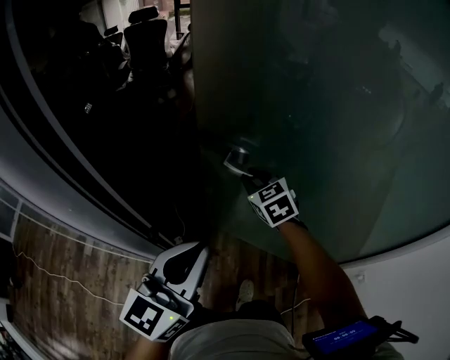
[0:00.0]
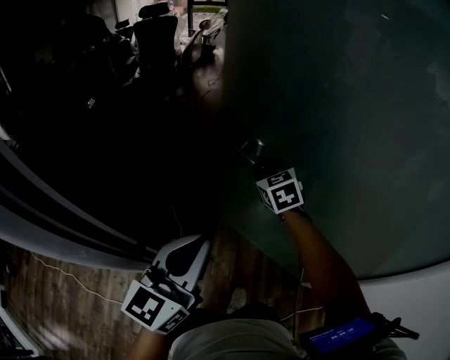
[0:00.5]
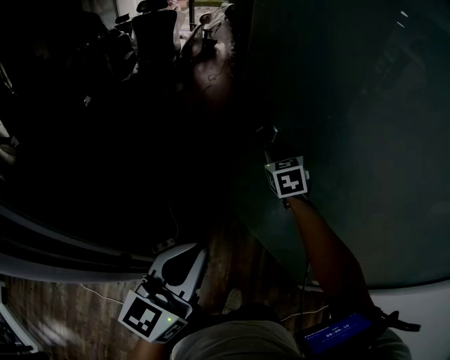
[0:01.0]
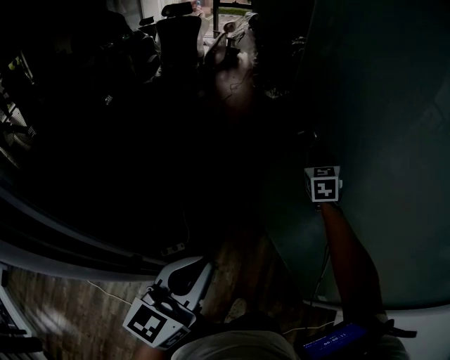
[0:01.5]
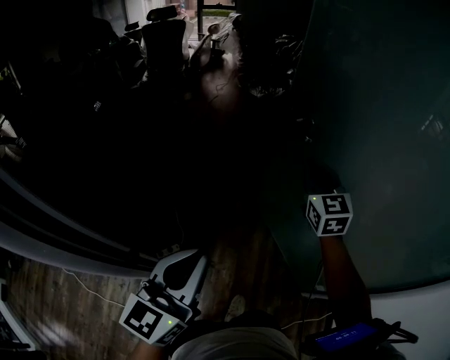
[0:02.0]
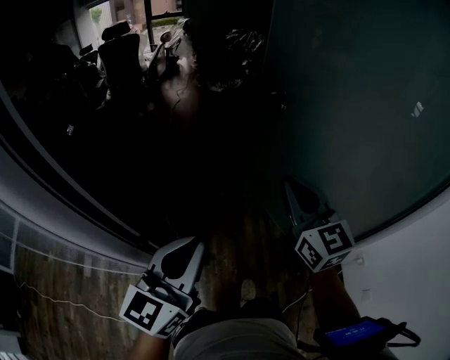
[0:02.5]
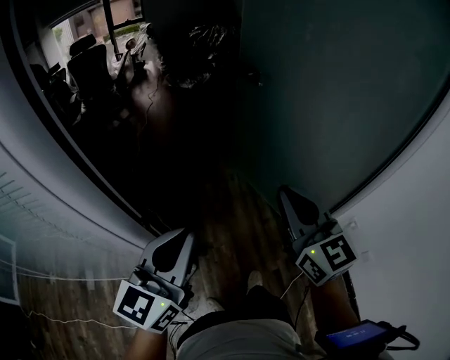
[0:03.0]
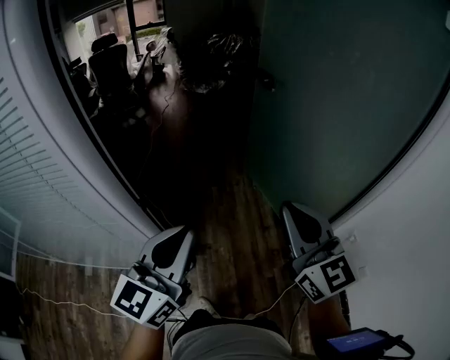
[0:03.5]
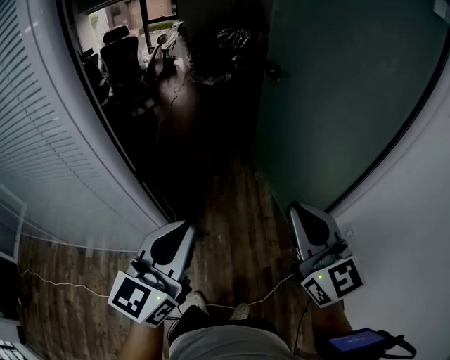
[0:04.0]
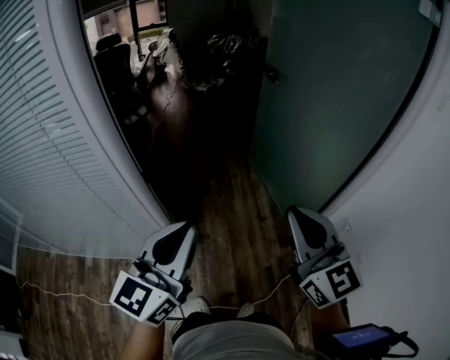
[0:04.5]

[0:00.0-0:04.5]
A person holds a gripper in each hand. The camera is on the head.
0:00.0 to 0:02.0: The left gripper heads forward, covering about 5 cm. The right gripper is displaced to the right, forward and upward by about 20 cm, and rotates approximately 30 degrees.
0:02.0 to 0:04.5: The left gripper moves backward, roughly 25 cm. Meanwhile the right gripper is displaced backward by approximately 50 cm.

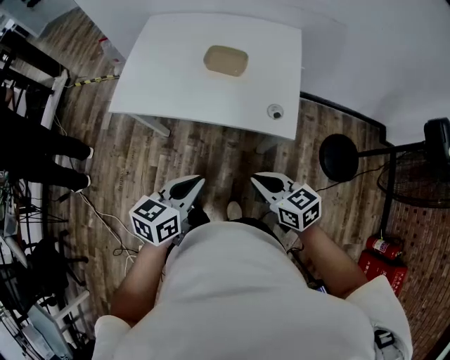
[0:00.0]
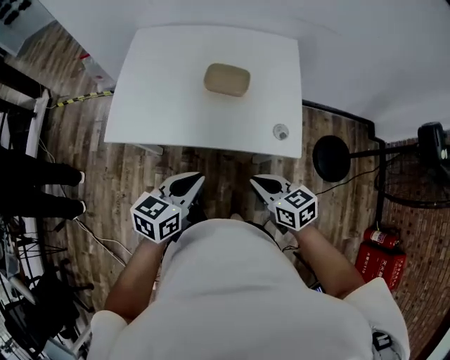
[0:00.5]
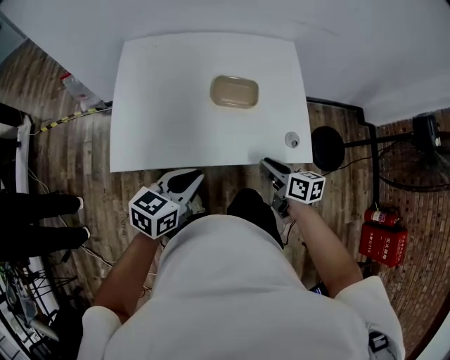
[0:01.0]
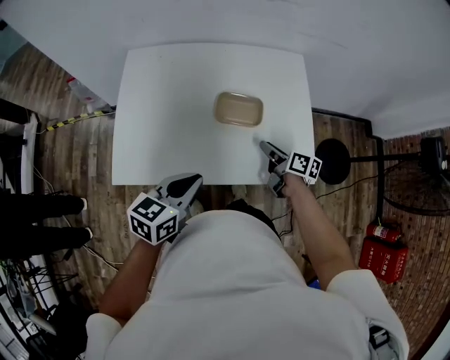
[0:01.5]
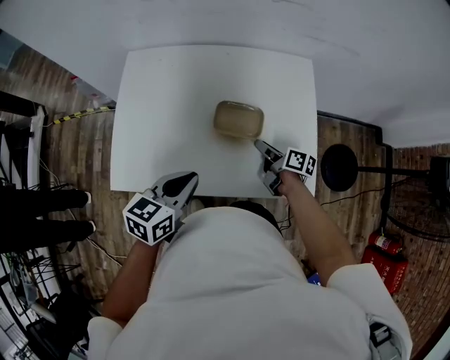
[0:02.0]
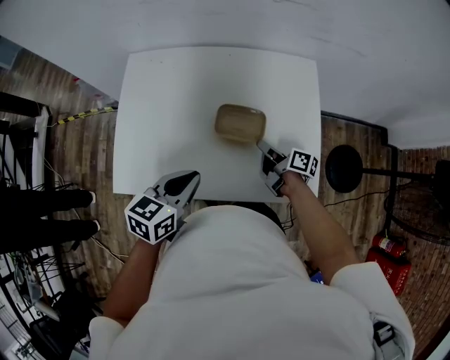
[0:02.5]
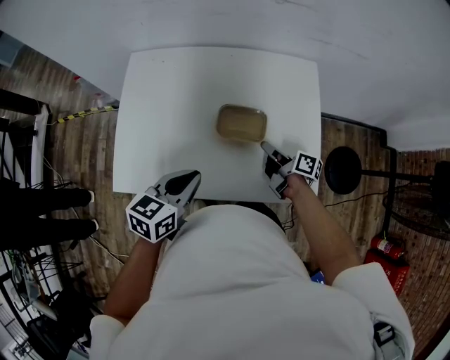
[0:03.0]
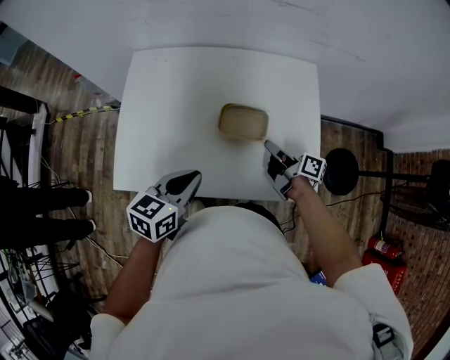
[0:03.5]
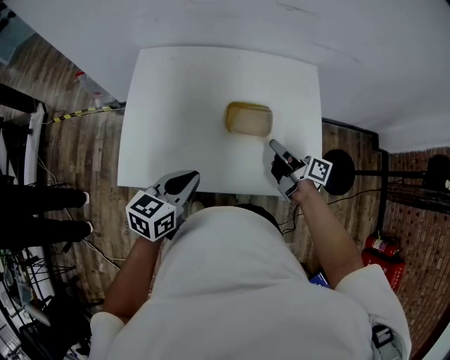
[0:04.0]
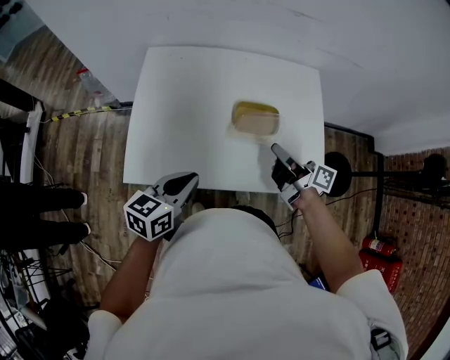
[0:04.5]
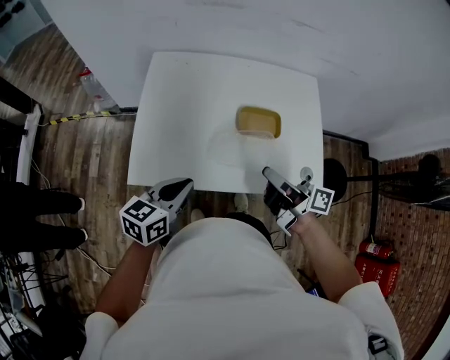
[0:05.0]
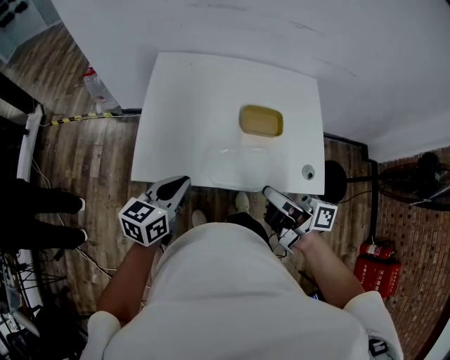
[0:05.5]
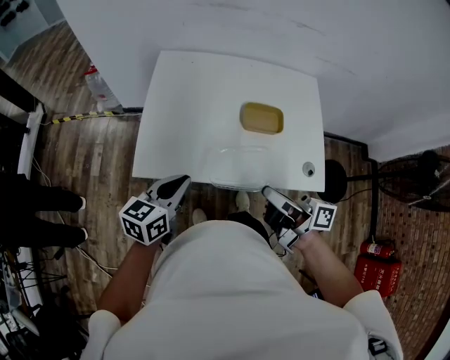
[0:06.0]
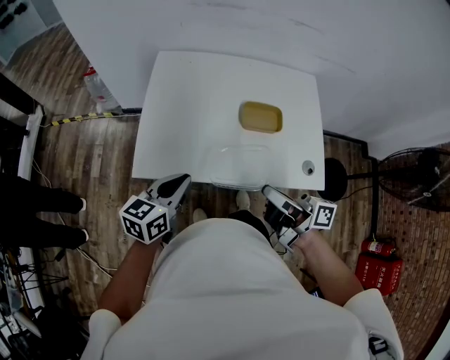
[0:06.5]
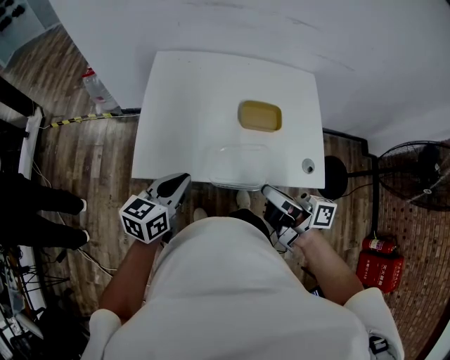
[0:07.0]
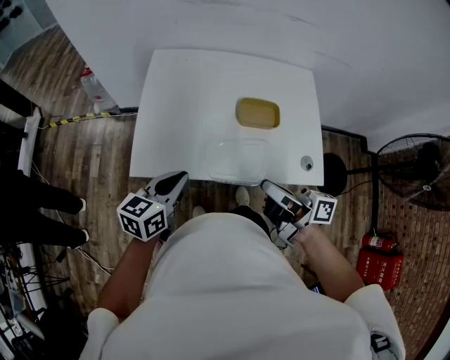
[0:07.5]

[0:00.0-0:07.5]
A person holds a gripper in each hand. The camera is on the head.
0:00.0 to 0:02.0: The left gripper is displaced forward and to the left by roughly 30 cm; the right gripper heads forward, covering about 40 cm, twists roughly 50 degrees clockwise, seen from behind, and opens up.
0:02.0 to 0:04.0: The right gripper moves upward, roughly 10 cm, and closes up.
0:04.0 to 0:05.5: The left gripper shifts some 10 cm to the left and backward; the right gripper goes roughly 25 cm backward, to the left and upward.
0:05.5 to 0:07.5: The two grippers keep their place.

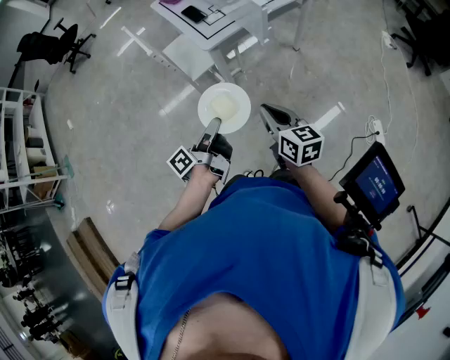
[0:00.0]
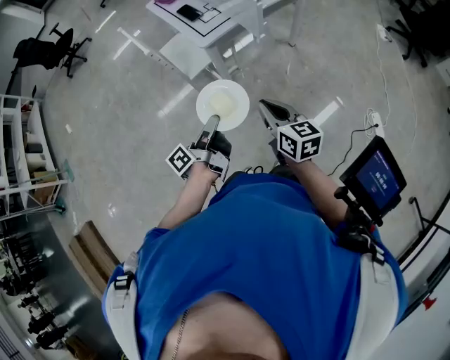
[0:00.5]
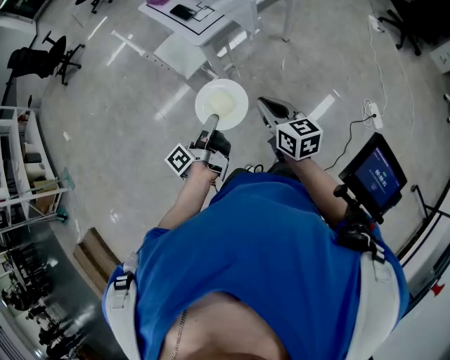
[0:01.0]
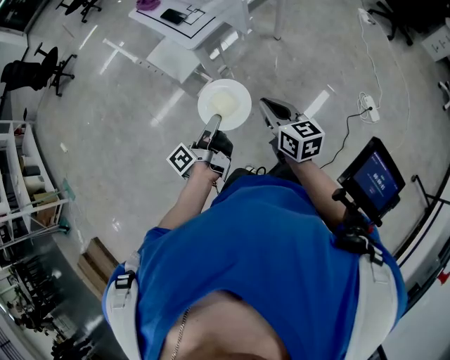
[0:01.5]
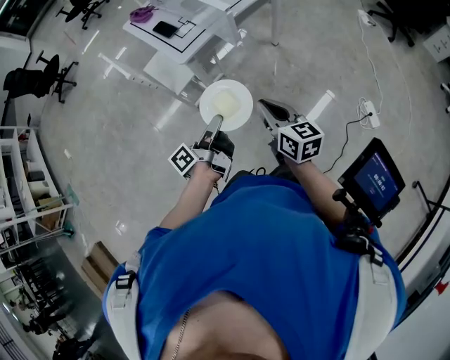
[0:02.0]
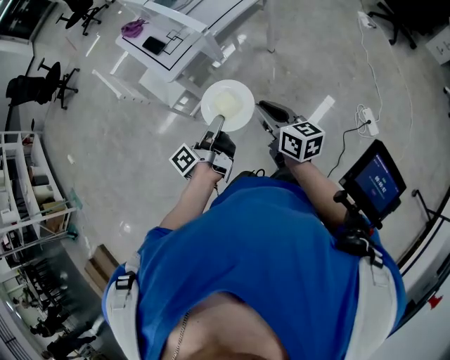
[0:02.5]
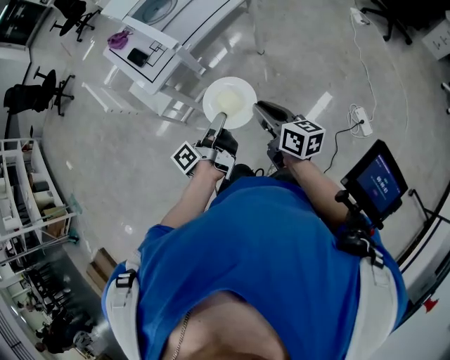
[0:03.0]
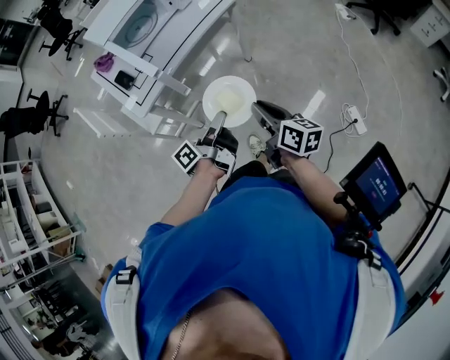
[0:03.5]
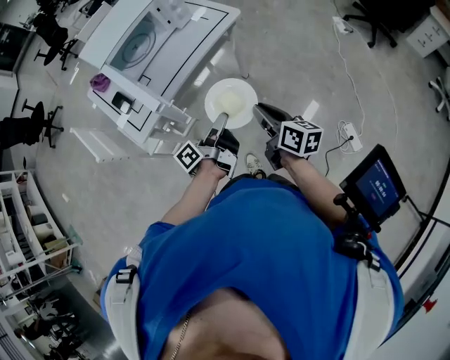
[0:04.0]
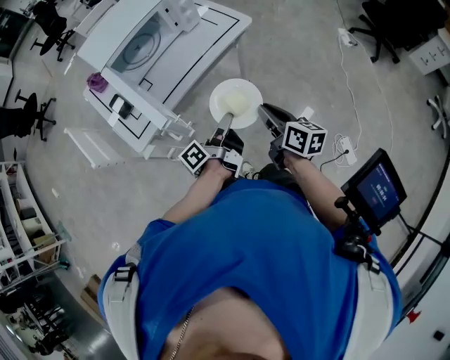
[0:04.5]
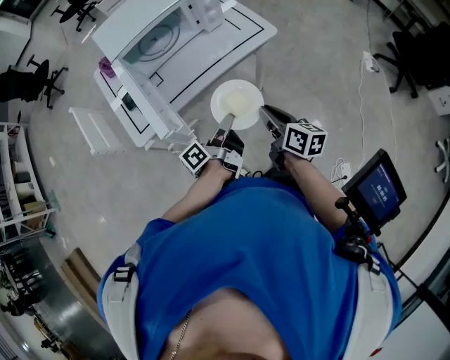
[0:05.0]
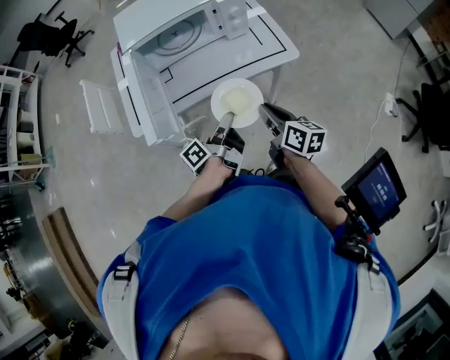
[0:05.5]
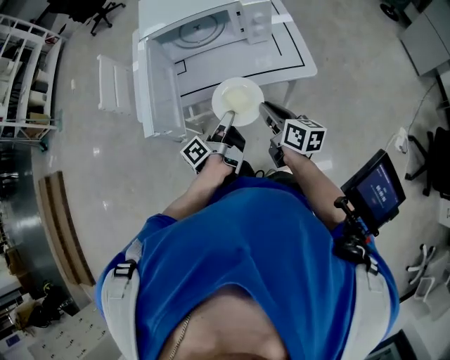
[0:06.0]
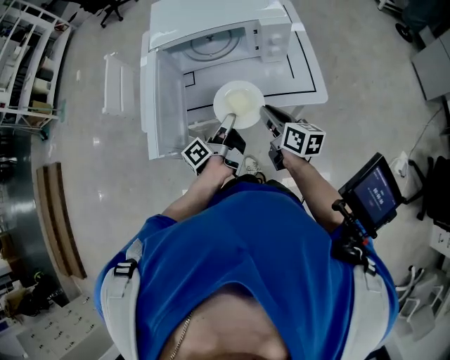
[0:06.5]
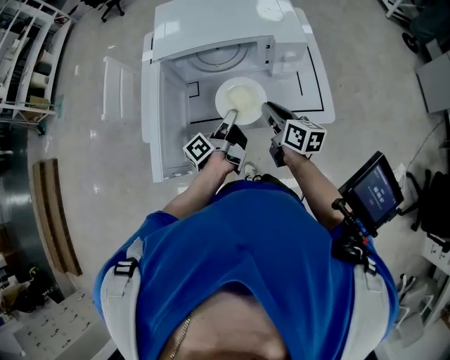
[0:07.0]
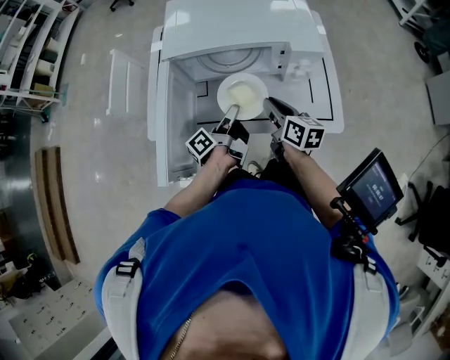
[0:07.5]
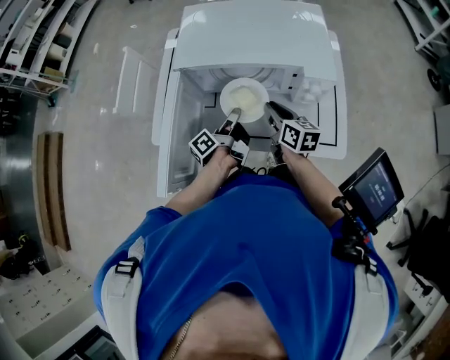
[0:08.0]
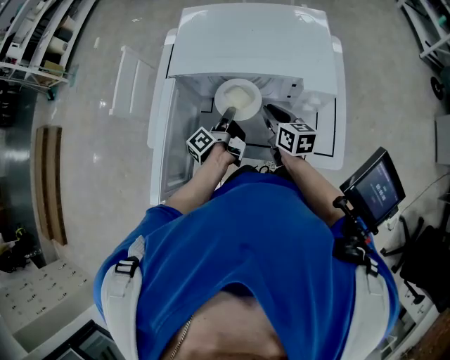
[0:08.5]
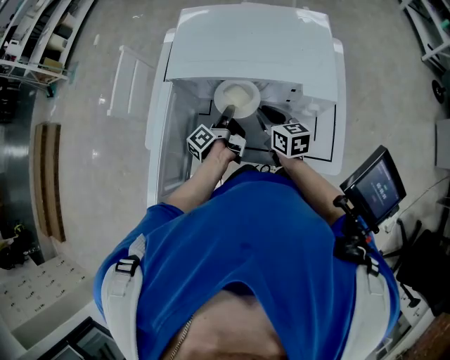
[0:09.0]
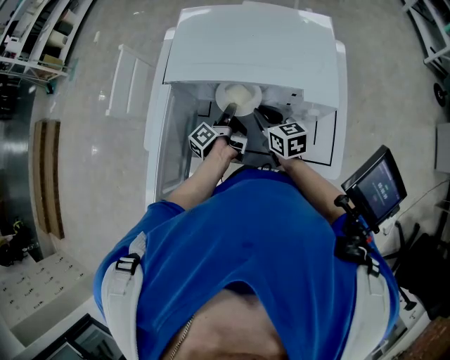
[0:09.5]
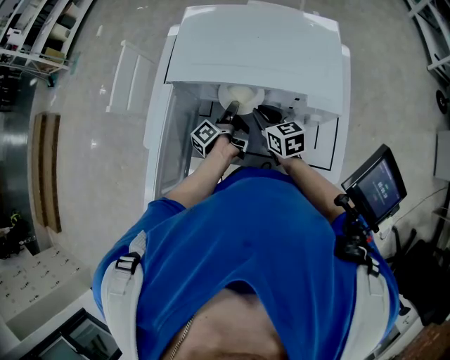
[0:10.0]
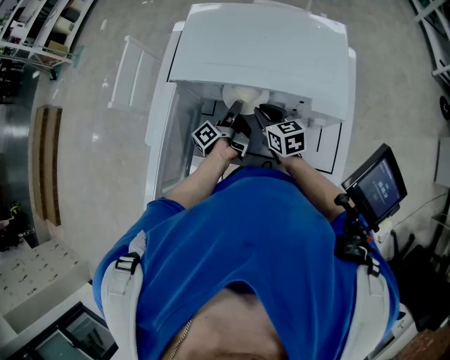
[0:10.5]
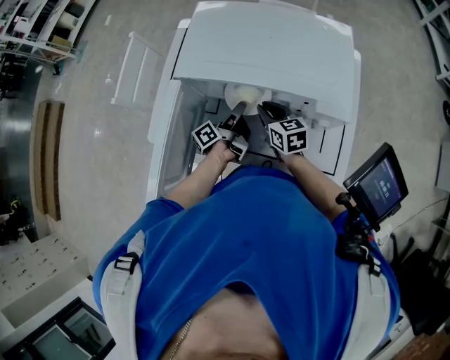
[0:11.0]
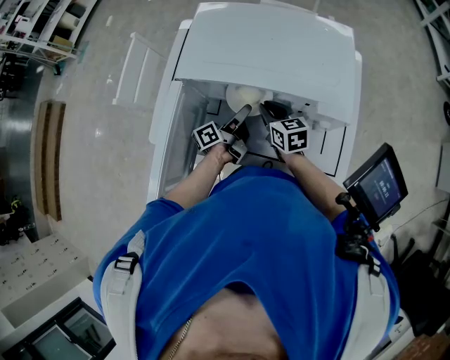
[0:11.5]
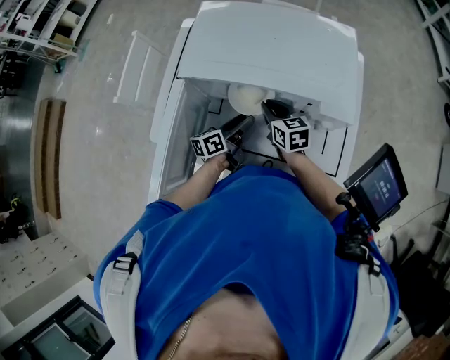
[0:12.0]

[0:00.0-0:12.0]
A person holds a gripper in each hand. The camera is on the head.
0:00.0 to 0:02.0: The right gripper changes place by some 10 cm.
0:02.0 to 0:04.0: The right gripper changes place by roughly 30 cm, and changes its angle by roughly 20 degrees.
0:04.0 to 0:06.0: The right gripper ends up approximately 30 cm from where it was, and swivels approximately 40 degrees.
0:06.0 to 0:08.0: The right gripper ends up roughly 30 cm from where it was.
0:08.0 to 0:10.0: The right gripper changes place by some 5 cm, and turns by approximately 20 degrees.

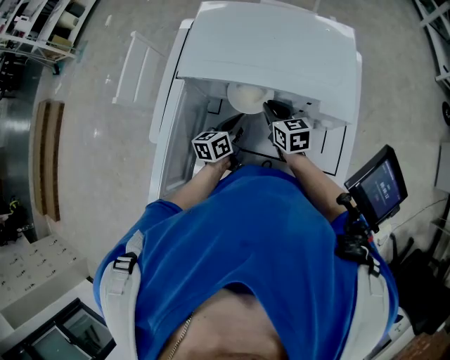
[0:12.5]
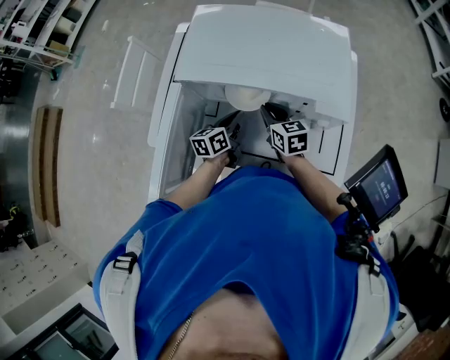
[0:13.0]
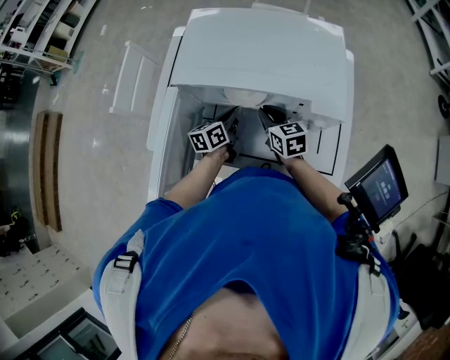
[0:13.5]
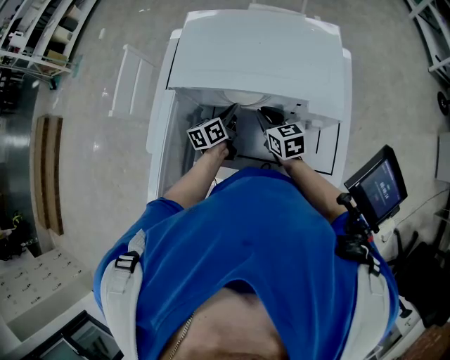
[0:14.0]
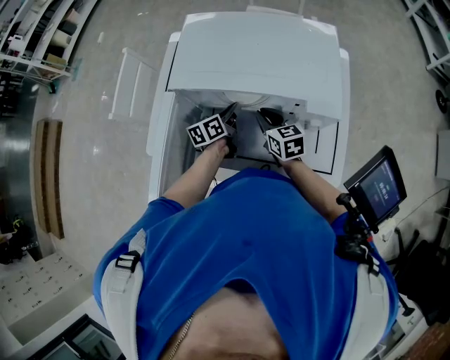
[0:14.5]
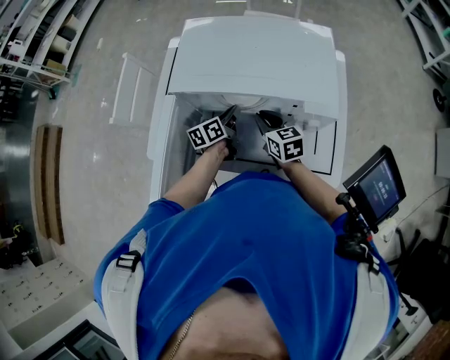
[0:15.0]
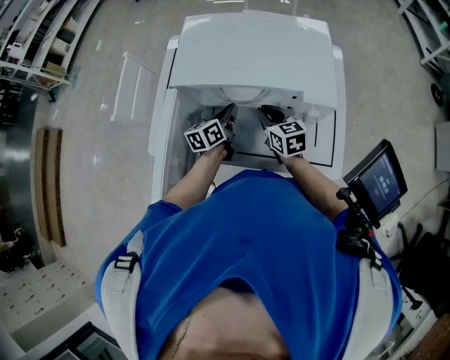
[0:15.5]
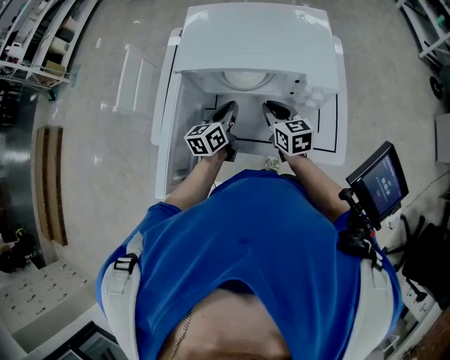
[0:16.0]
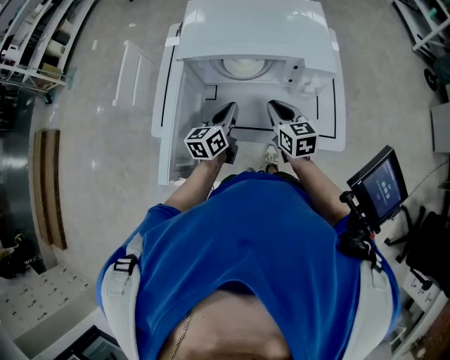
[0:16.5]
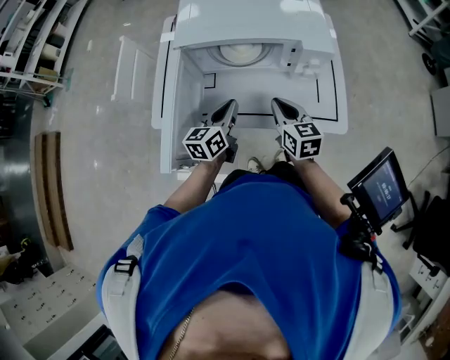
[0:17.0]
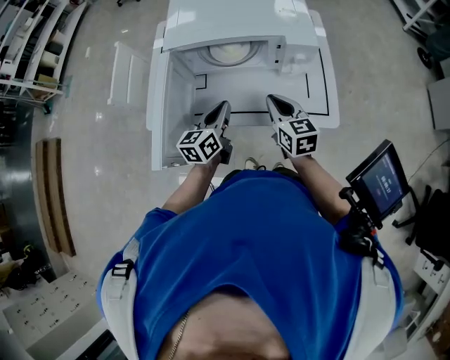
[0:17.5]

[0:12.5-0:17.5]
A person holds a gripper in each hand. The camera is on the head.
0:15.0 to 0:17.5: The right gripper ends up roughly 20 cm from where it was.
